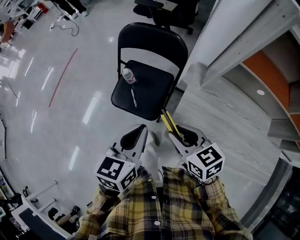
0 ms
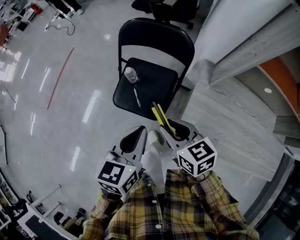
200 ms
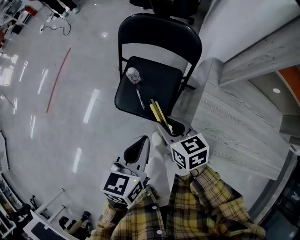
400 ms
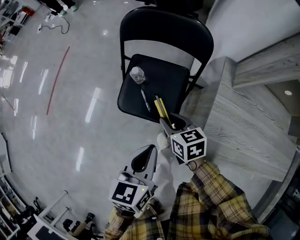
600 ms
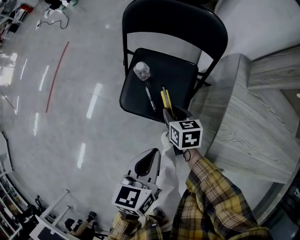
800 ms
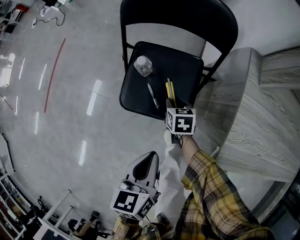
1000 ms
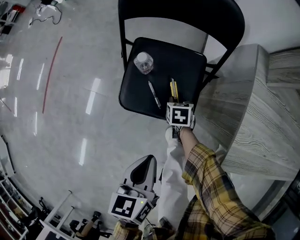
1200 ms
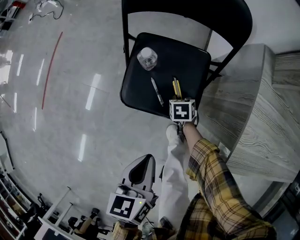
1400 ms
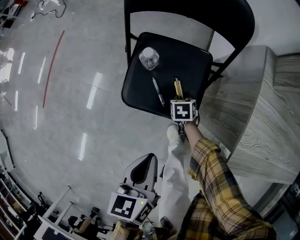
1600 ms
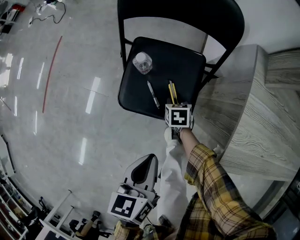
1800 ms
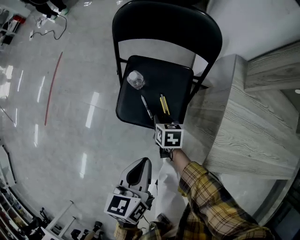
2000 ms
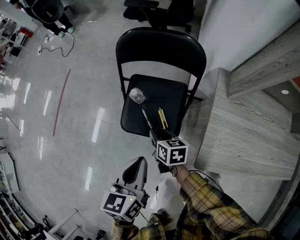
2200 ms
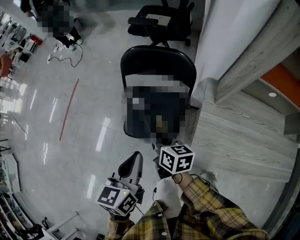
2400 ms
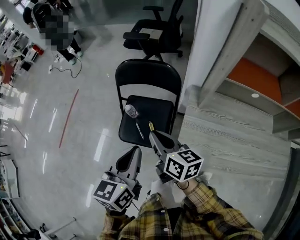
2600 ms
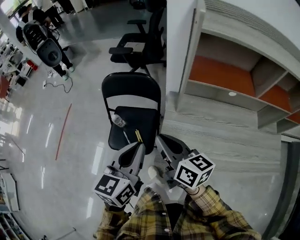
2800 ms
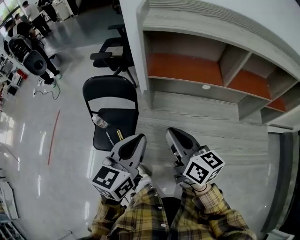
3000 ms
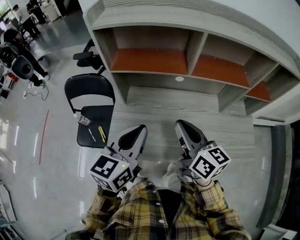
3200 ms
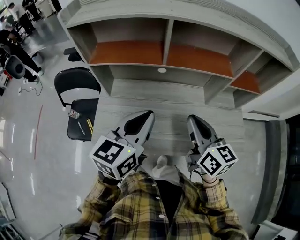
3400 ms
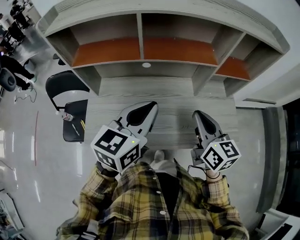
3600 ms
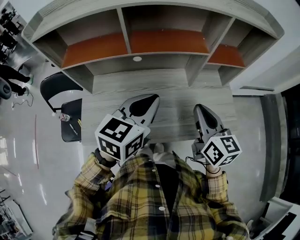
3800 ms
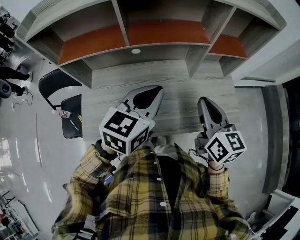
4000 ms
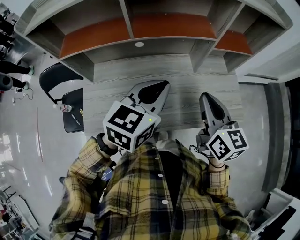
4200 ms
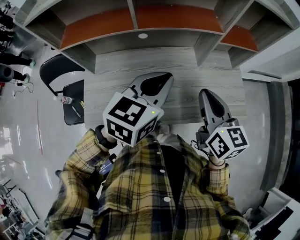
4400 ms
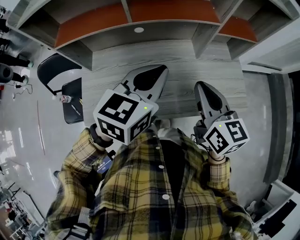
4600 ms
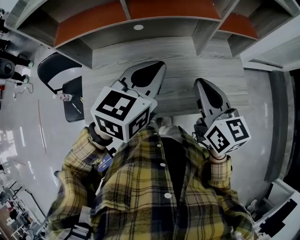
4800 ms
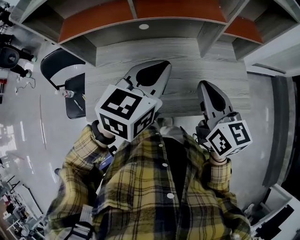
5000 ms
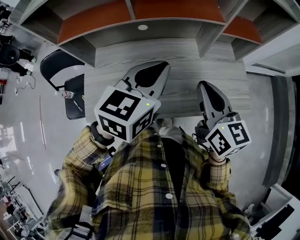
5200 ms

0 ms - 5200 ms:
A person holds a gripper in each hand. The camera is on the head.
0 ms - 1800 ms: The right gripper is displaced downward by roughly 50 cm, and tips its fingers downward by about 30 degrees; the left gripper travels downward and to the left by about 30 cm.
1800 ms - 3400 ms: Both grippers are carried some 60 cm. The left gripper turns by approximately 50 degrees, while the right gripper points its fingers roughly 50 degrees further upward, and closes up.
3400 ms - 5200 ms: The two grippers go about 10 cm to the right.

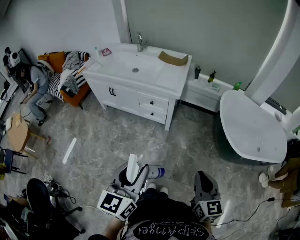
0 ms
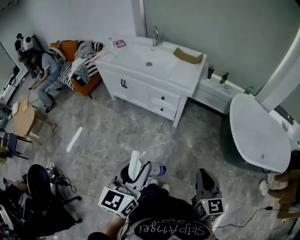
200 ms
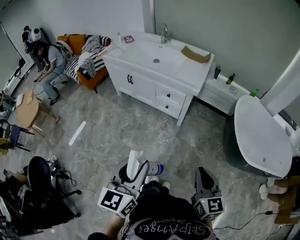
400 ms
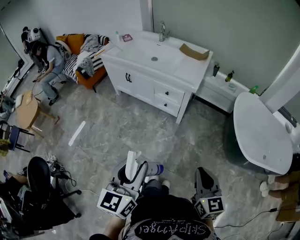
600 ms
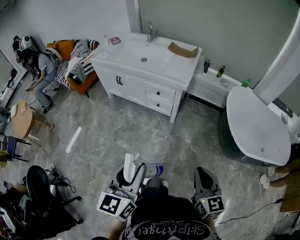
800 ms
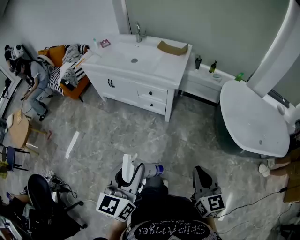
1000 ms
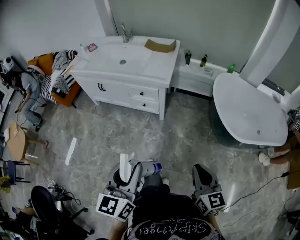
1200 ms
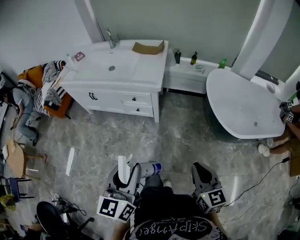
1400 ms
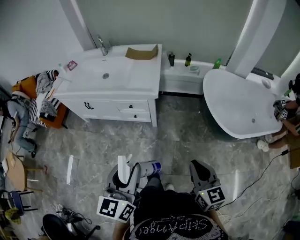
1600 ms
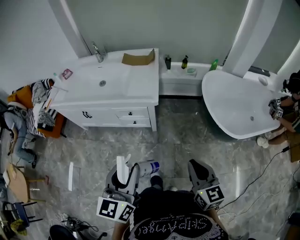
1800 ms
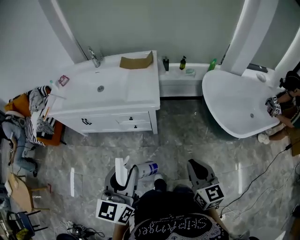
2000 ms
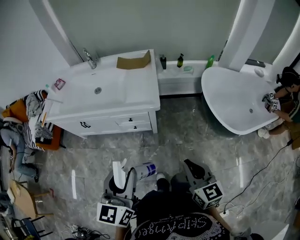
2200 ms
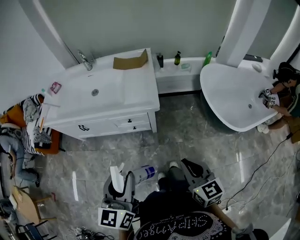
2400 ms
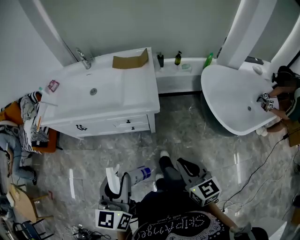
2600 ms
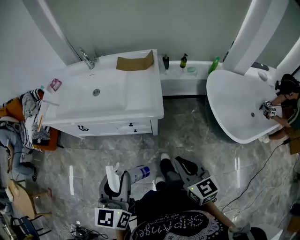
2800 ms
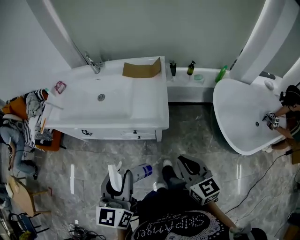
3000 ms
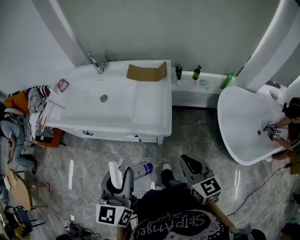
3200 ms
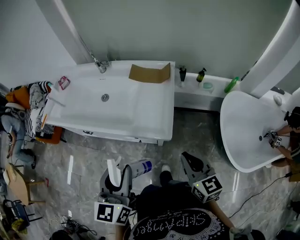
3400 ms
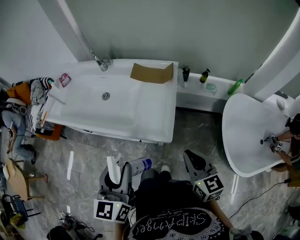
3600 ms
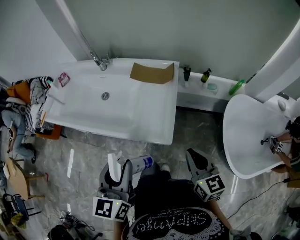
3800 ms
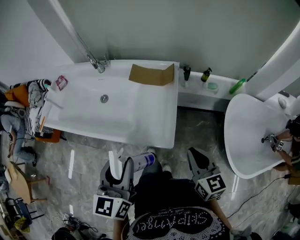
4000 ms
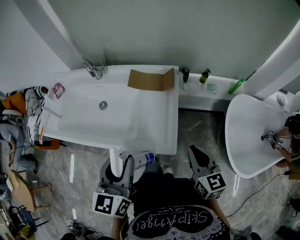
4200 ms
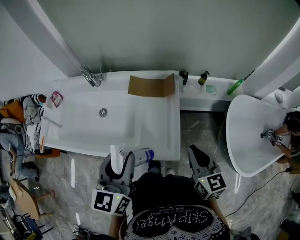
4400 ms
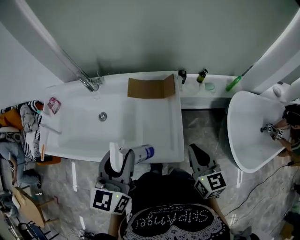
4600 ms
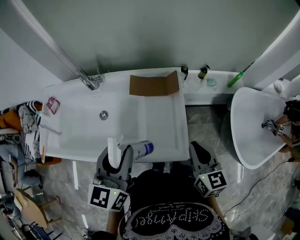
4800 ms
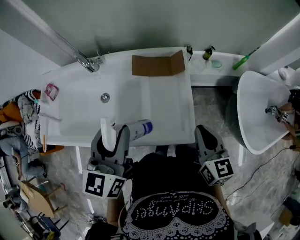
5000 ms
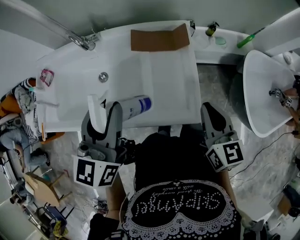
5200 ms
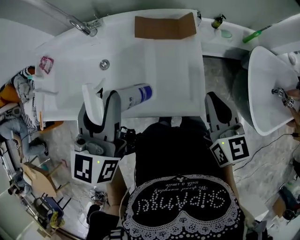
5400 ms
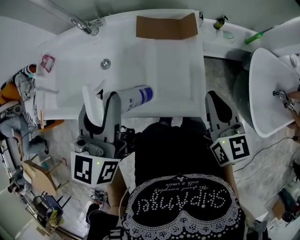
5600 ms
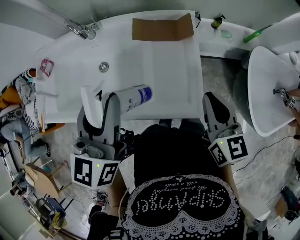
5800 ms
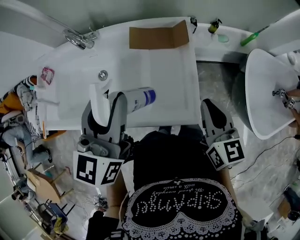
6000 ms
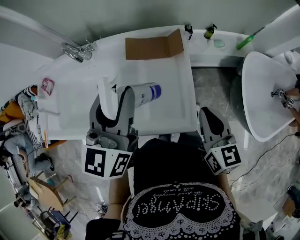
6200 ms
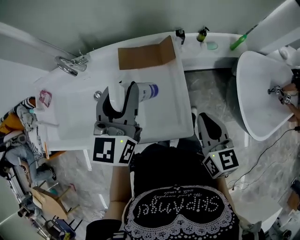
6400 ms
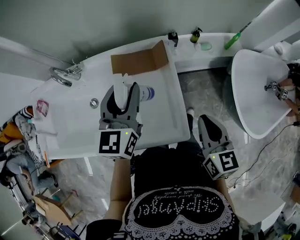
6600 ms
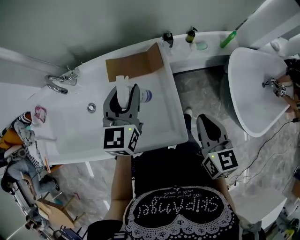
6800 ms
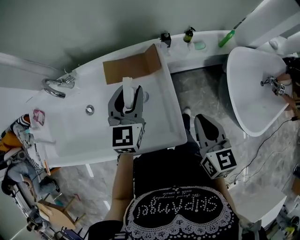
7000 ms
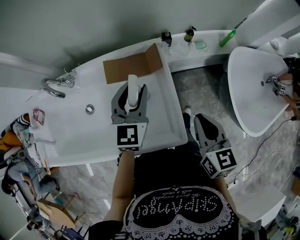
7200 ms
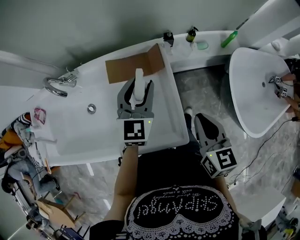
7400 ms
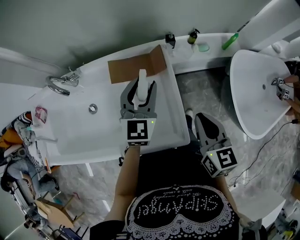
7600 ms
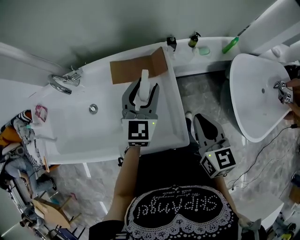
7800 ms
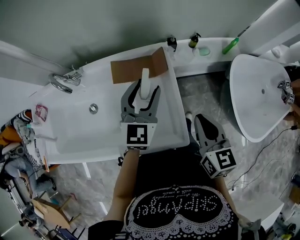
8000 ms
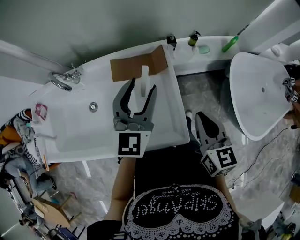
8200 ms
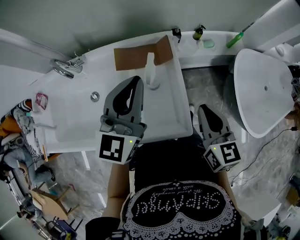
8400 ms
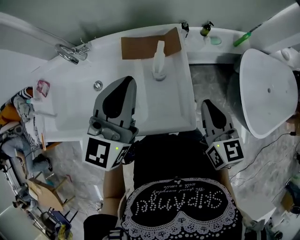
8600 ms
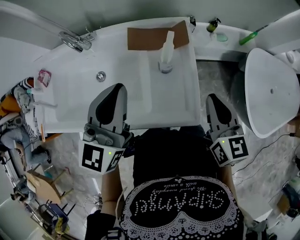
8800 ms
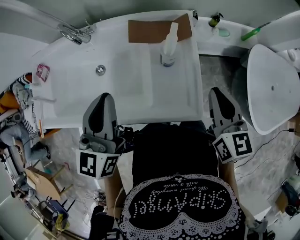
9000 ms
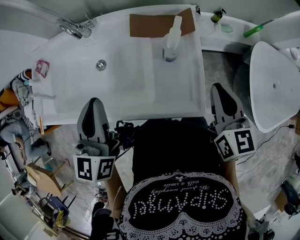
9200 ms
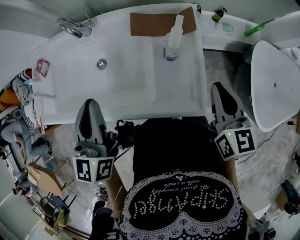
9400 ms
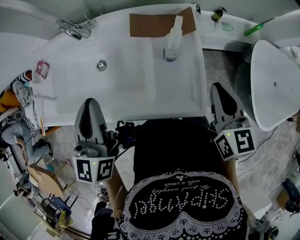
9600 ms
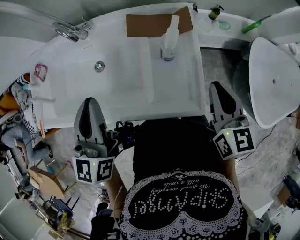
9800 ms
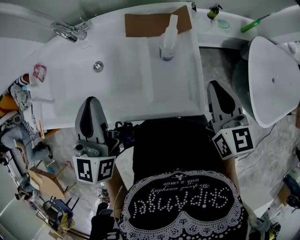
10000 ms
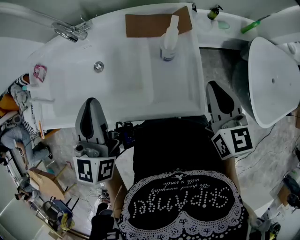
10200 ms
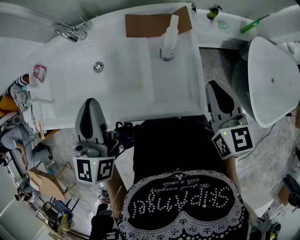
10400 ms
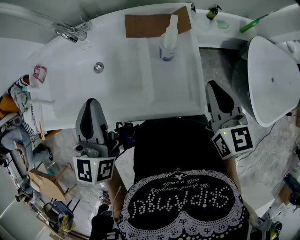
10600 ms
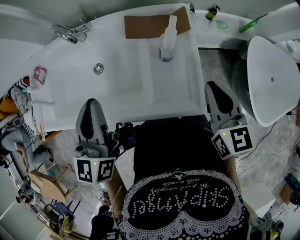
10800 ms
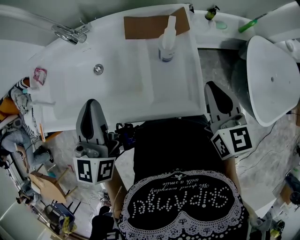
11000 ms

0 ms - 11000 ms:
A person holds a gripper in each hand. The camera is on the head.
0 ms - 1600 ms: Both grippers move forward, some 10 cm.
1600 ms - 3200 ms: Both grippers move forward, some 25 cm.
3200 ms - 4800 ms: The grippers both shift forward by roughly 25 cm.
4800 ms - 6200 ms: The left gripper goes roughly 5 cm forward.
6200 ms - 7800 ms: The left gripper shifts roughly 20 cm downward, forward and to the right, and changes its angle by about 20 degrees; the right gripper changes place by roughly 5 cm.
7800 ms - 9400 ms: The left gripper heads to the left and backward, covering roughly 30 cm, changes its angle by some 30 degrees, and closes its fingers.
9400 ms - 11000 ms: There are only small adjustments of the grippers.

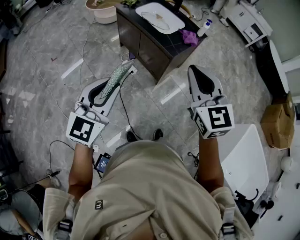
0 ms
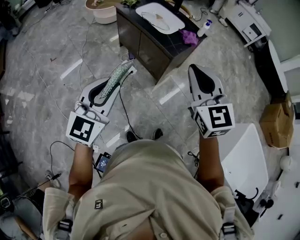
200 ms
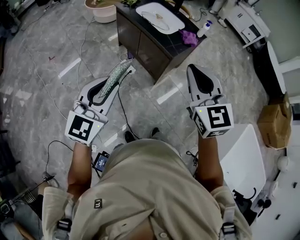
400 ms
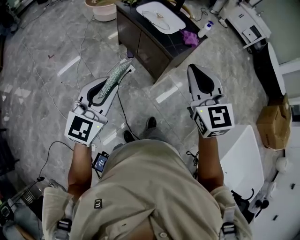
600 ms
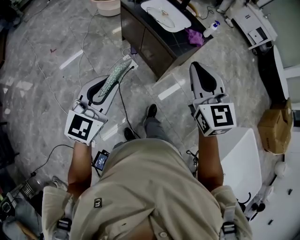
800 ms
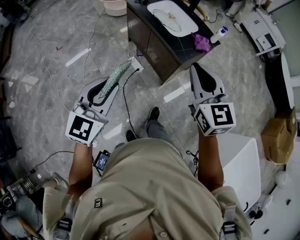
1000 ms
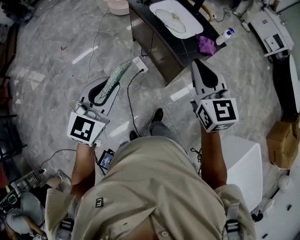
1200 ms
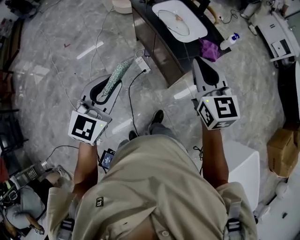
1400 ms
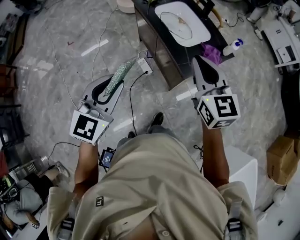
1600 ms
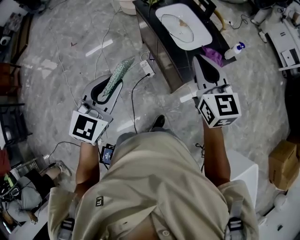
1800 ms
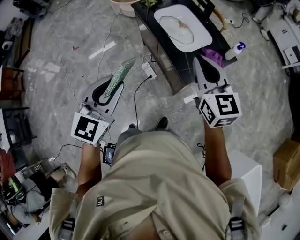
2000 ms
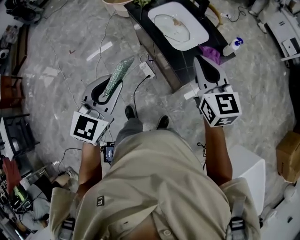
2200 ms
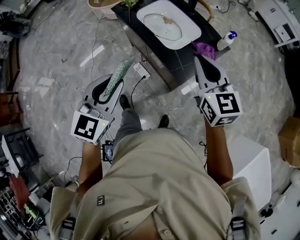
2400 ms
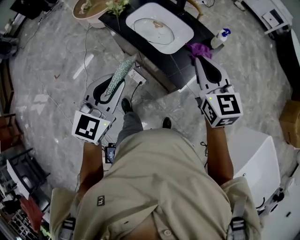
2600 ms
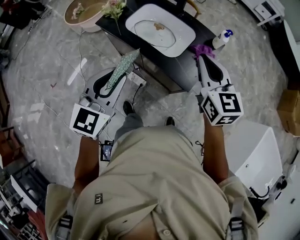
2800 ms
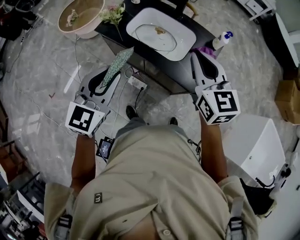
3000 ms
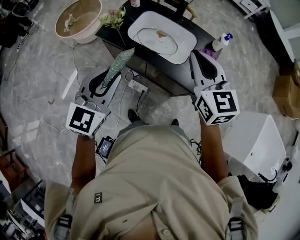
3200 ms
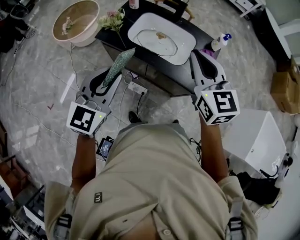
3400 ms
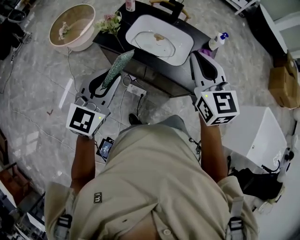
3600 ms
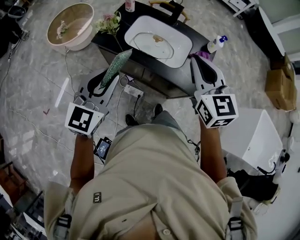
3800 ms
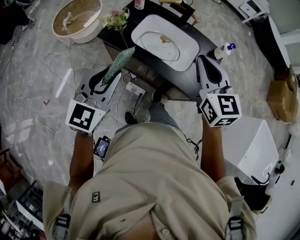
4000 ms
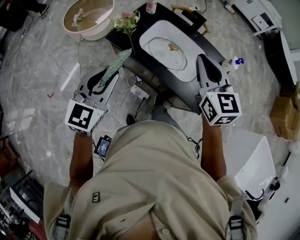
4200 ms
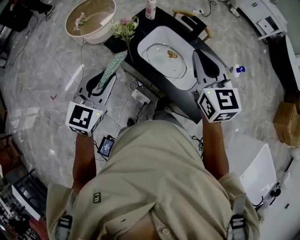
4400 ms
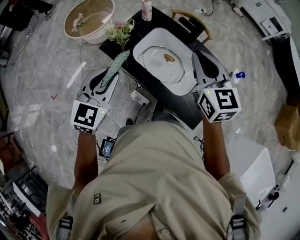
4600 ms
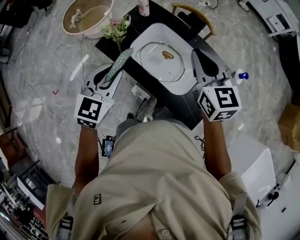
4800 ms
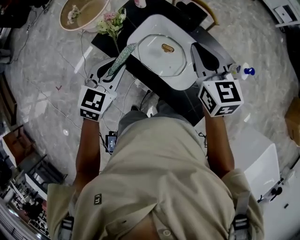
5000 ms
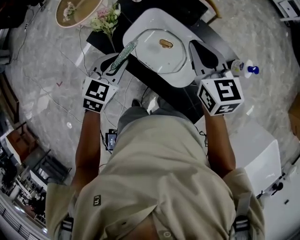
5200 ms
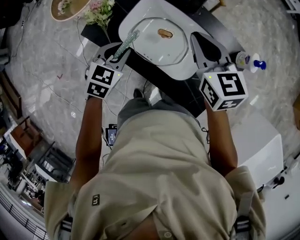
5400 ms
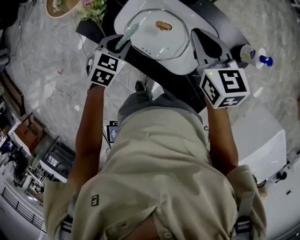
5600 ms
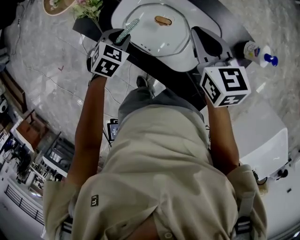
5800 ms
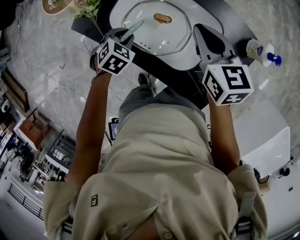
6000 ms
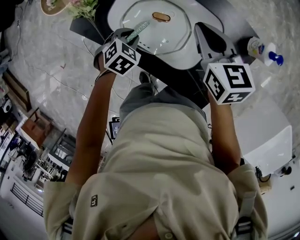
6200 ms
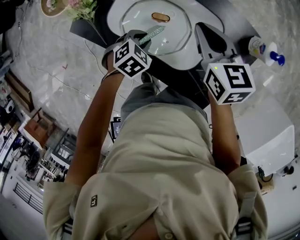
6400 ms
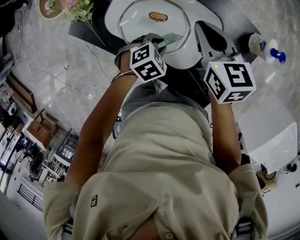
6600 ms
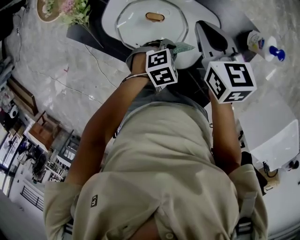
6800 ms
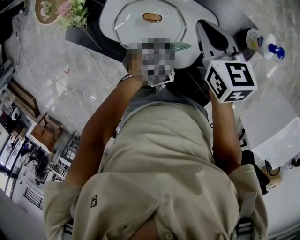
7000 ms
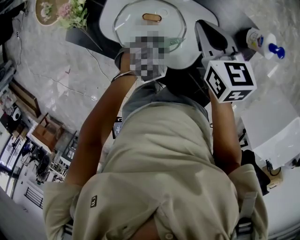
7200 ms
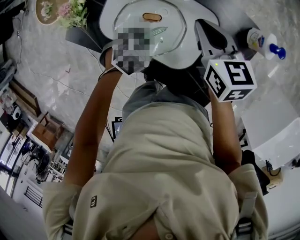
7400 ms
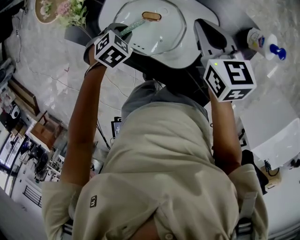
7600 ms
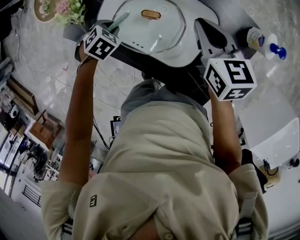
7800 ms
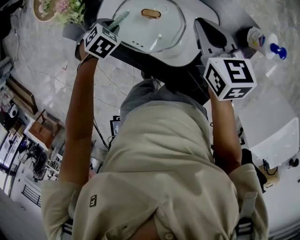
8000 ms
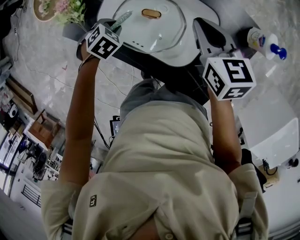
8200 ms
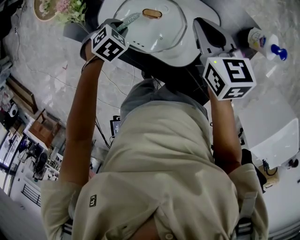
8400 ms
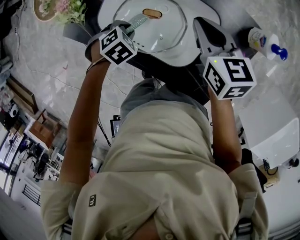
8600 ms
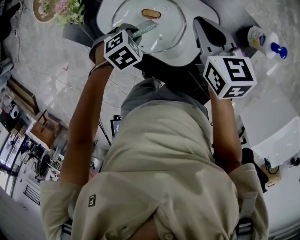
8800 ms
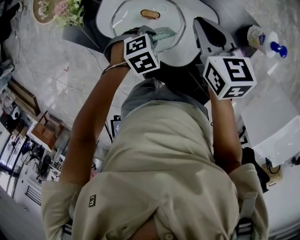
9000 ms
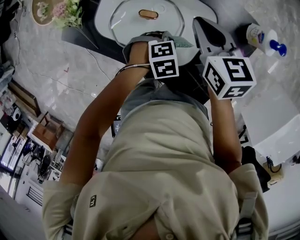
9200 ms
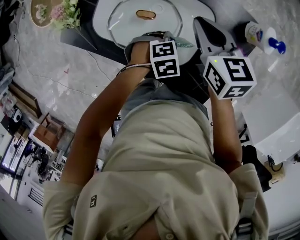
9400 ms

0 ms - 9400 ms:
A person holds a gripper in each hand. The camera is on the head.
0 ms - 1600 ms: The two grippers go approximately 25 cm forward.
1600 ms - 3200 ms: The right gripper ends up about 20 cm from where it was, and changes its angle by approximately 30 degrees. The left gripper moves approximately 35 cm, and swivels about 30 degrees.
3200 ms - 4800 ms: The grippers both shift forward by about 25 cm.
4800 ms - 6200 ms: The left gripper goes about 30 cm downward, and tips its fingers downward by approximately 50 degrees. Meanwhile the right gripper heads downward, covering roughly 20 cm, and changes its angle by roughly 20 degrees.
7800 ms - 9400 ms: The left gripper shifts by about 25 cm, and rotates some 30 degrees.
